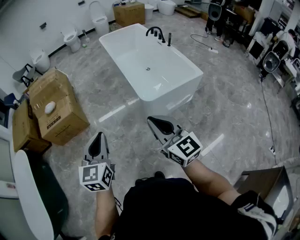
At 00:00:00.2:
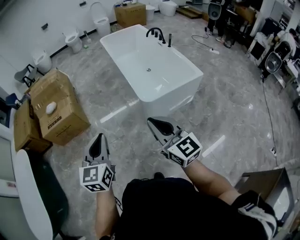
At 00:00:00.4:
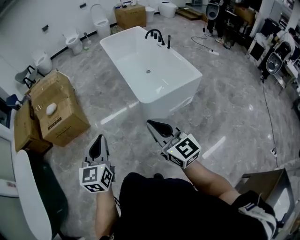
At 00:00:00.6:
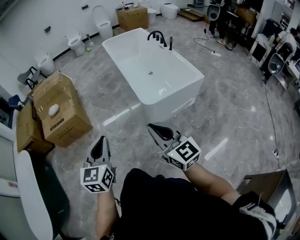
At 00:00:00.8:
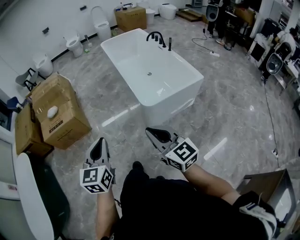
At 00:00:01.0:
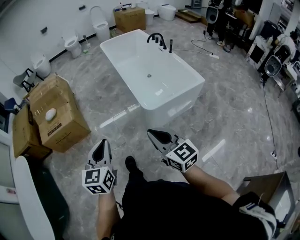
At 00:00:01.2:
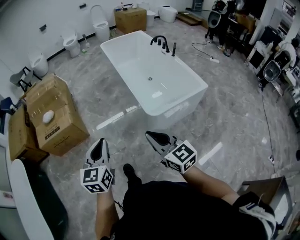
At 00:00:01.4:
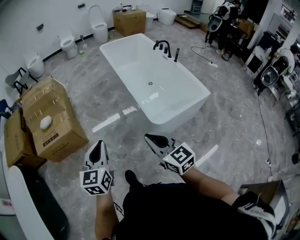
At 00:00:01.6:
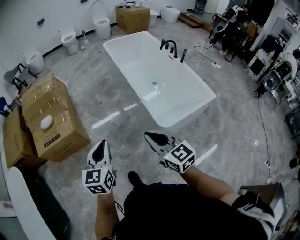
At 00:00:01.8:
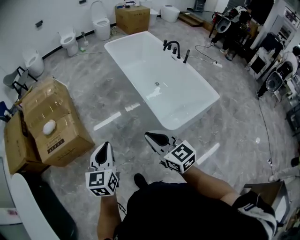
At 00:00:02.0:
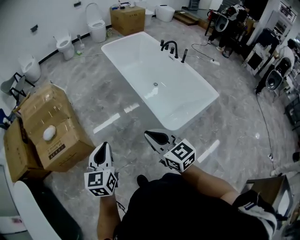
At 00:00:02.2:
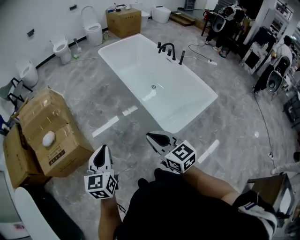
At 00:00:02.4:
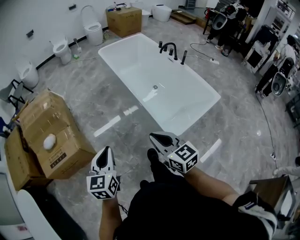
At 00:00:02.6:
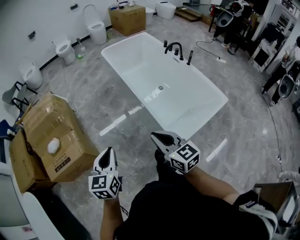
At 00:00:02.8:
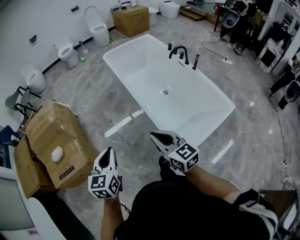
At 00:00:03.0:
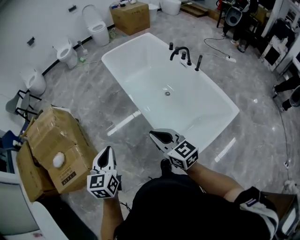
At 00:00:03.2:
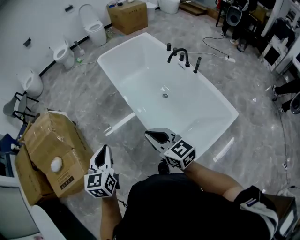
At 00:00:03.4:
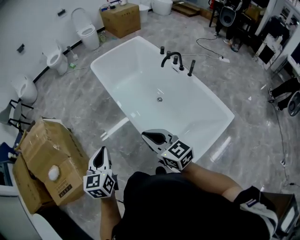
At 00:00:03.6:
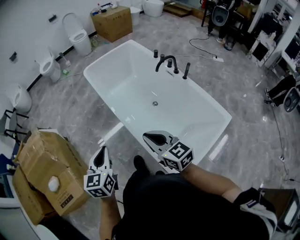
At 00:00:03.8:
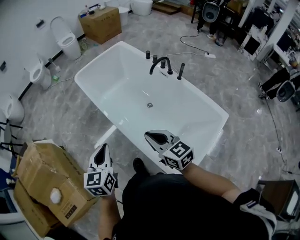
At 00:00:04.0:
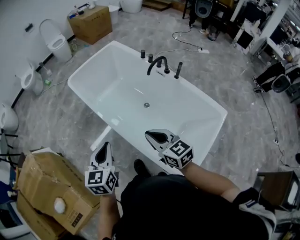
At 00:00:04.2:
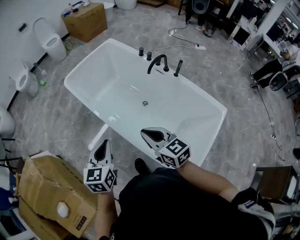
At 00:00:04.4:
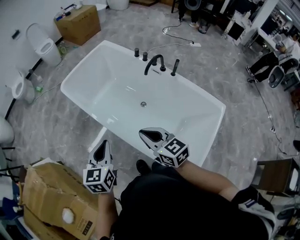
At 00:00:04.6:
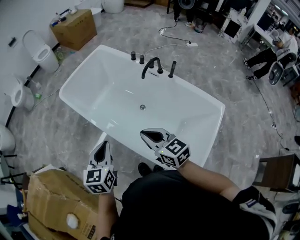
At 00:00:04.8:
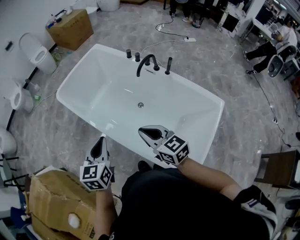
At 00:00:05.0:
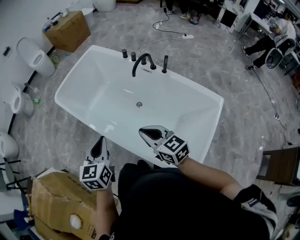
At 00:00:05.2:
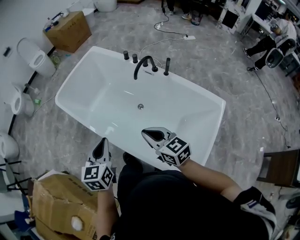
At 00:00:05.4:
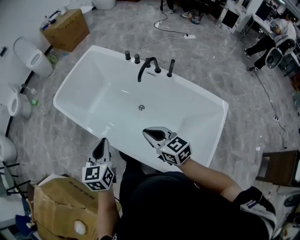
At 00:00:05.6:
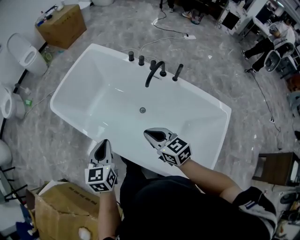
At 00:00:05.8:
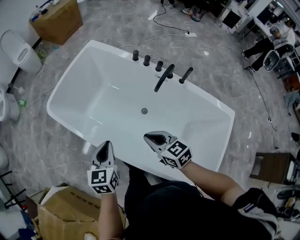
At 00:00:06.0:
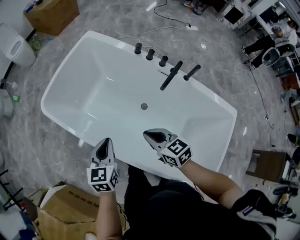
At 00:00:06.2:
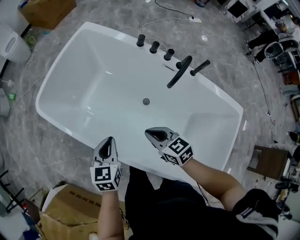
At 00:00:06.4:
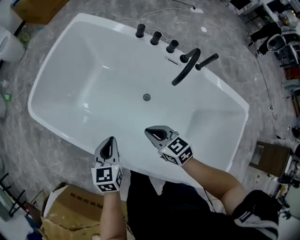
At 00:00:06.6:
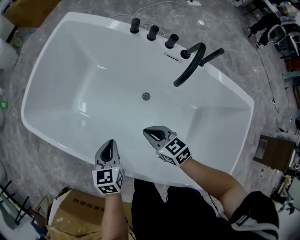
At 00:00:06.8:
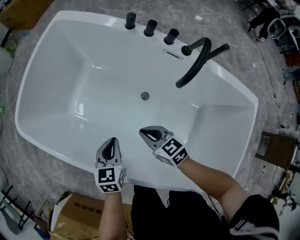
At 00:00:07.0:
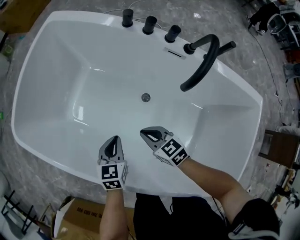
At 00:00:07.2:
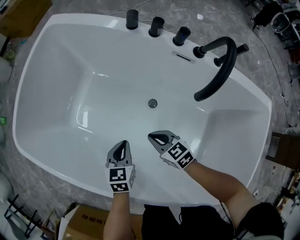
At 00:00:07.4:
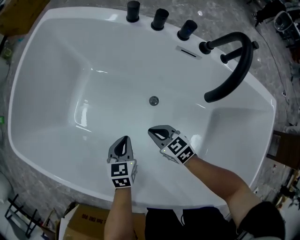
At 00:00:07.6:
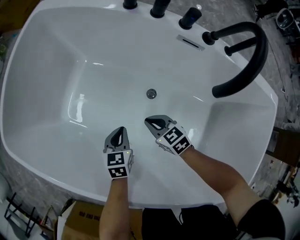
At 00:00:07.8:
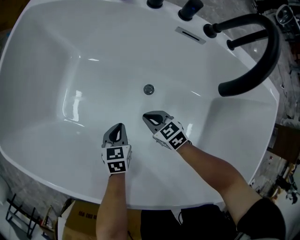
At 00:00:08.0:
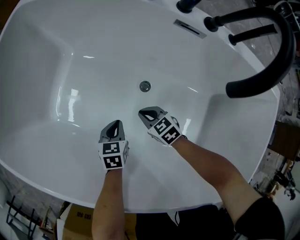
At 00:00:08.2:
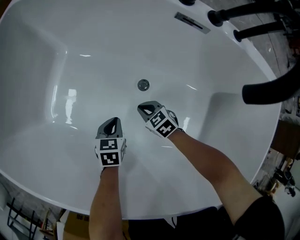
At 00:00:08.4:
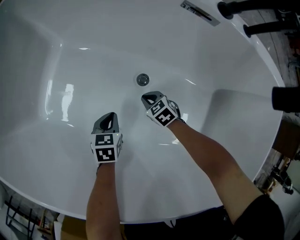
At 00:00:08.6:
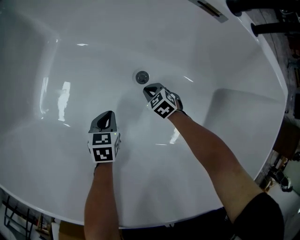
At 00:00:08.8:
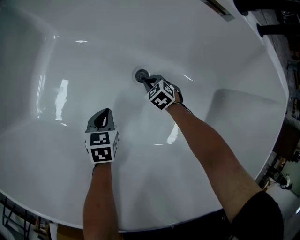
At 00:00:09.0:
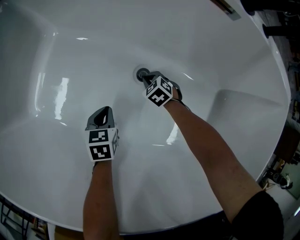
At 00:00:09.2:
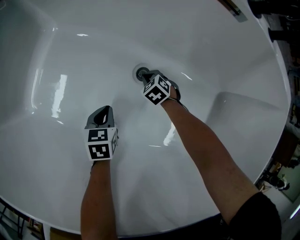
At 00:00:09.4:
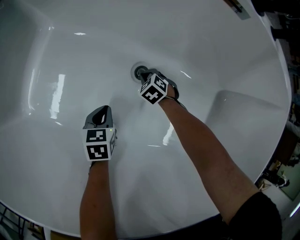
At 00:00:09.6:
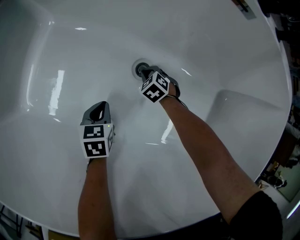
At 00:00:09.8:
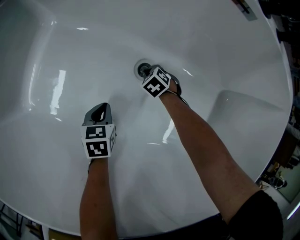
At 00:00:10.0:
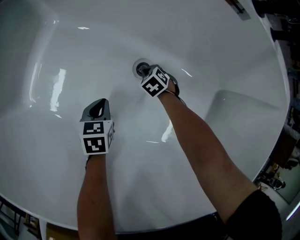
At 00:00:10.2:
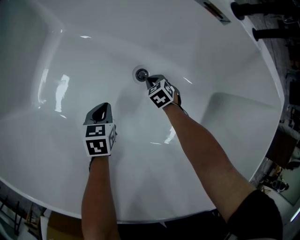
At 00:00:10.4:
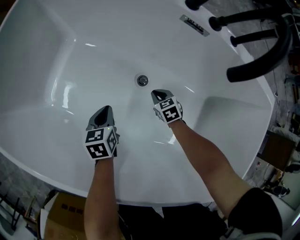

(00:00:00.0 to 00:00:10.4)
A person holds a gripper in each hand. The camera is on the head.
00:00:00.0 - 00:00:01.4: The left gripper travels forward by approximately 20 cm. The right gripper shifts roughly 20 cm forward and to the left.
00:00:01.4 - 00:00:03.0: The pair of grippers is taken forward, about 40 cm.
00:00:03.0 - 00:00:04.4: Both grippers travel together forward, some 35 cm. The left gripper changes its angle by about 20 degrees, while the right gripper turns by about 20 degrees.
00:00:04.4 - 00:00:06.0: The grippers both shift forward and downward by about 35 cm.
00:00:06.0 - 00:00:07.4: Both grippers move downward, some 35 cm.
00:00:07.4 - 00:00:09.0: The two grippers go some 30 cm downward. The right gripper rotates about 30 degrees.
00:00:09.0 - 00:00:10.4: Both grippers move upward, some 15 cm. The right gripper rotates some 20 degrees.

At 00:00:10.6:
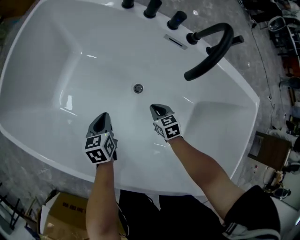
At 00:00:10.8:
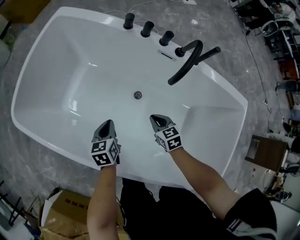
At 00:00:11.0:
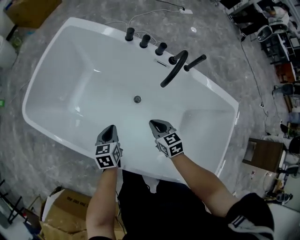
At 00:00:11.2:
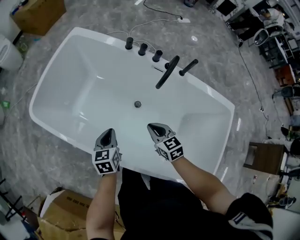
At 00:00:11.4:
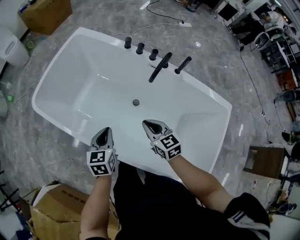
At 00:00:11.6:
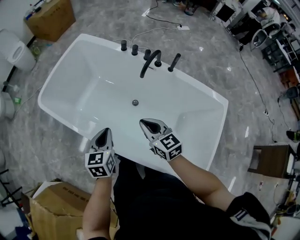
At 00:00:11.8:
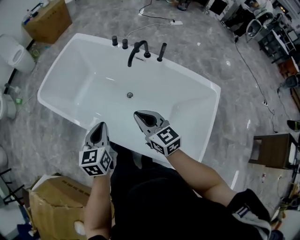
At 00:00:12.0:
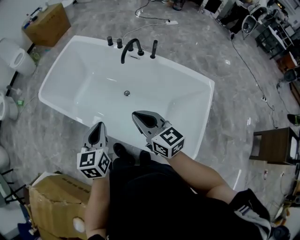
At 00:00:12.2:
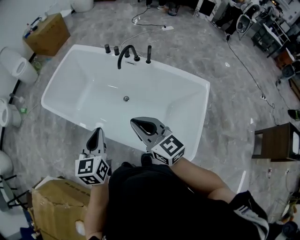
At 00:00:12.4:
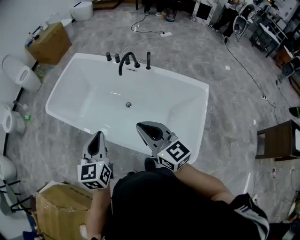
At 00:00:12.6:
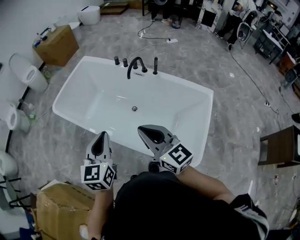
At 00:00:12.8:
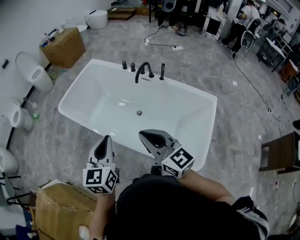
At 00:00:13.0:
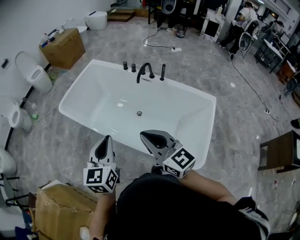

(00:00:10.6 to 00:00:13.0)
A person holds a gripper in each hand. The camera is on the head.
00:00:10.6 - 00:00:11.8: The two grippers go roughly 60 cm upward and backward. The right gripper points its fingers roughly 40 degrees further upward. The left gripper turns by roughly 20 degrees.
00:00:11.8 - 00:00:13.0: The right gripper goes about 30 cm backward, upward and to the left; the left gripper heads upward and backward, covering some 25 cm.

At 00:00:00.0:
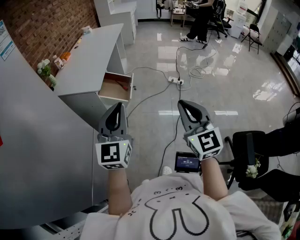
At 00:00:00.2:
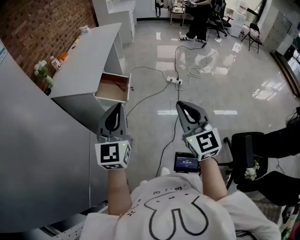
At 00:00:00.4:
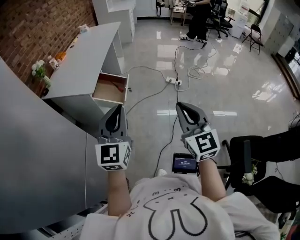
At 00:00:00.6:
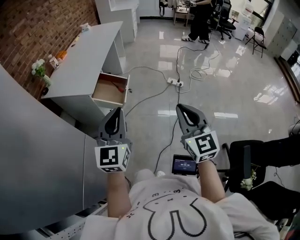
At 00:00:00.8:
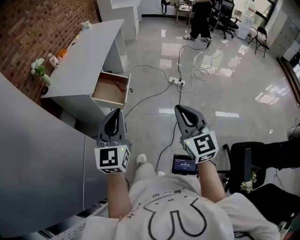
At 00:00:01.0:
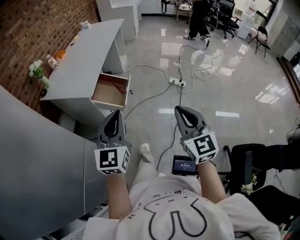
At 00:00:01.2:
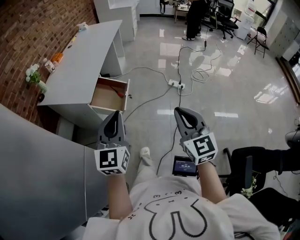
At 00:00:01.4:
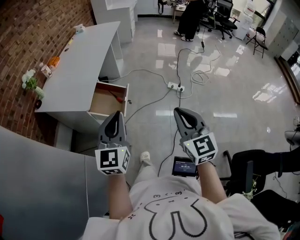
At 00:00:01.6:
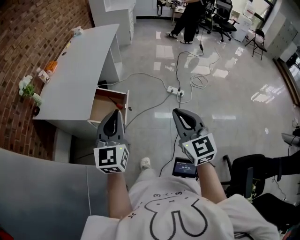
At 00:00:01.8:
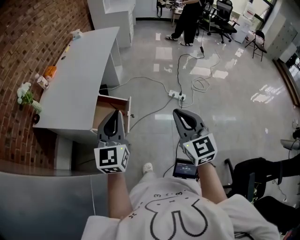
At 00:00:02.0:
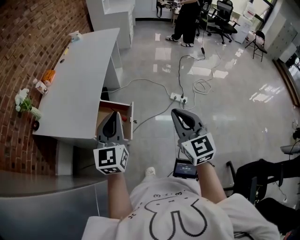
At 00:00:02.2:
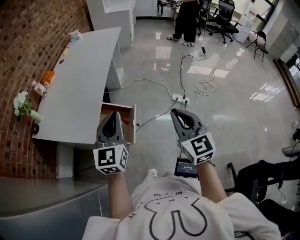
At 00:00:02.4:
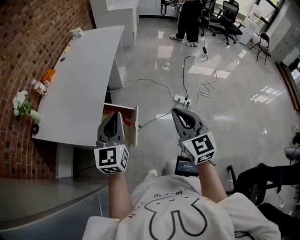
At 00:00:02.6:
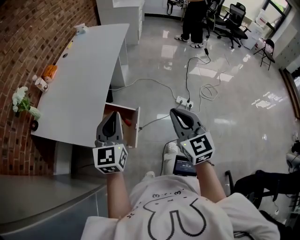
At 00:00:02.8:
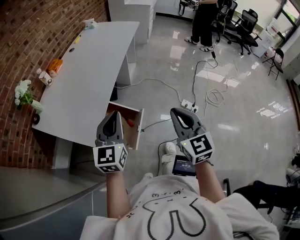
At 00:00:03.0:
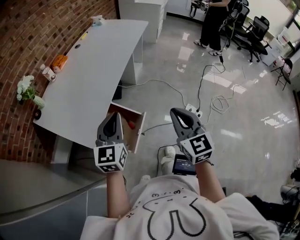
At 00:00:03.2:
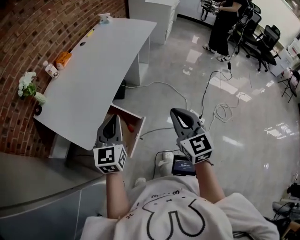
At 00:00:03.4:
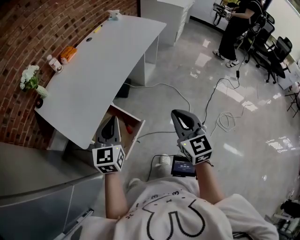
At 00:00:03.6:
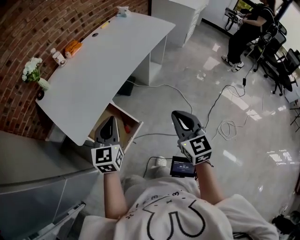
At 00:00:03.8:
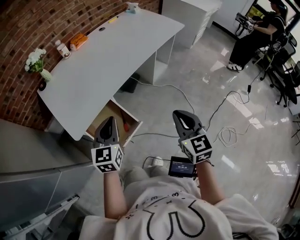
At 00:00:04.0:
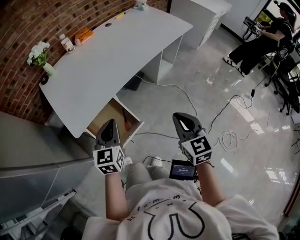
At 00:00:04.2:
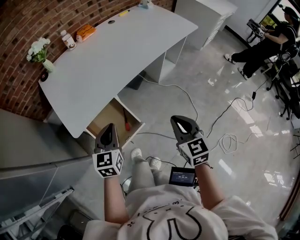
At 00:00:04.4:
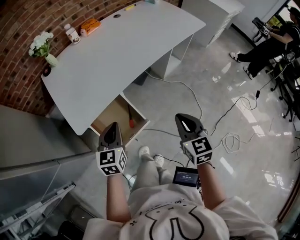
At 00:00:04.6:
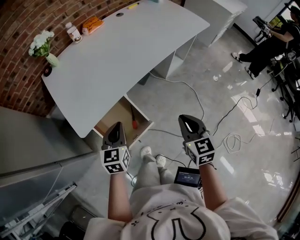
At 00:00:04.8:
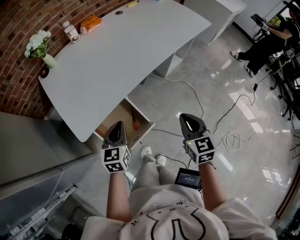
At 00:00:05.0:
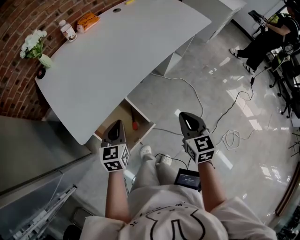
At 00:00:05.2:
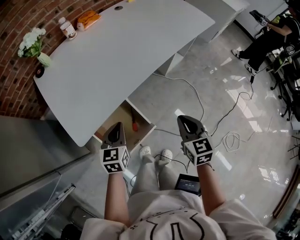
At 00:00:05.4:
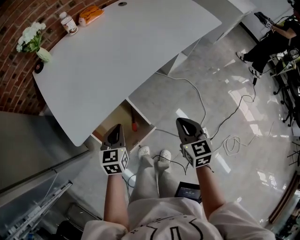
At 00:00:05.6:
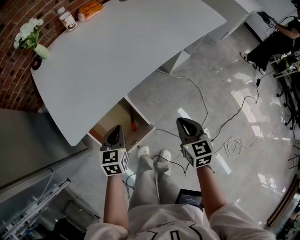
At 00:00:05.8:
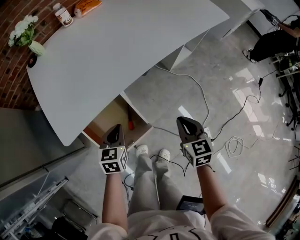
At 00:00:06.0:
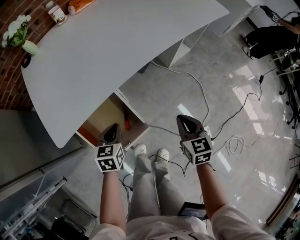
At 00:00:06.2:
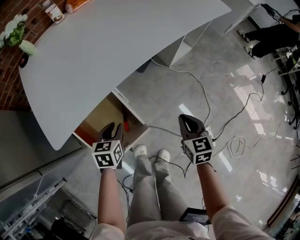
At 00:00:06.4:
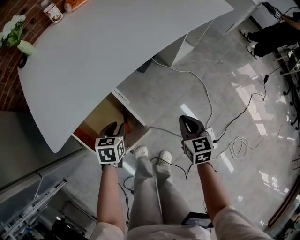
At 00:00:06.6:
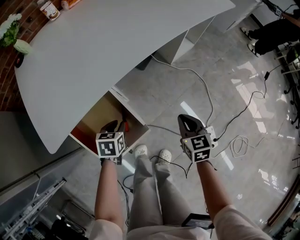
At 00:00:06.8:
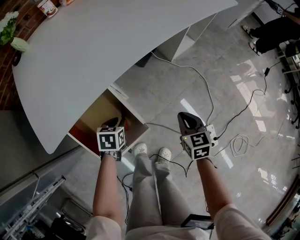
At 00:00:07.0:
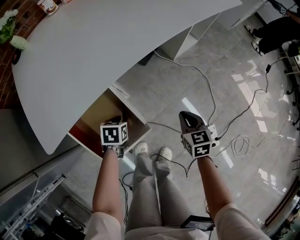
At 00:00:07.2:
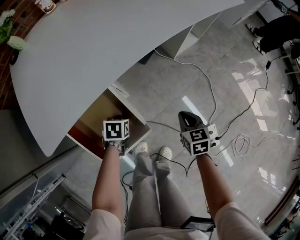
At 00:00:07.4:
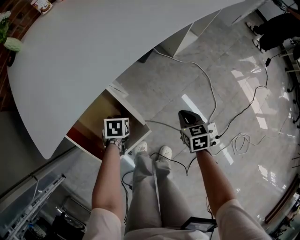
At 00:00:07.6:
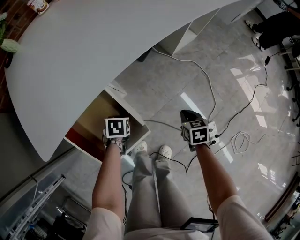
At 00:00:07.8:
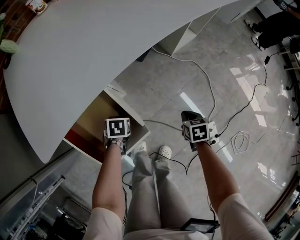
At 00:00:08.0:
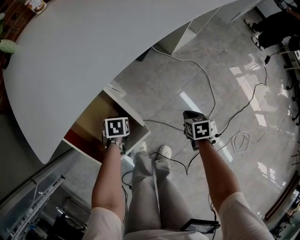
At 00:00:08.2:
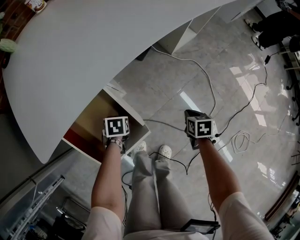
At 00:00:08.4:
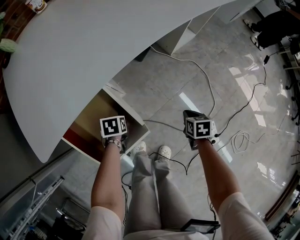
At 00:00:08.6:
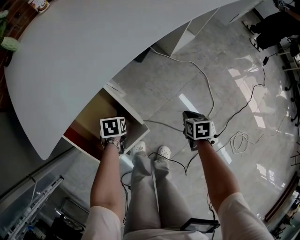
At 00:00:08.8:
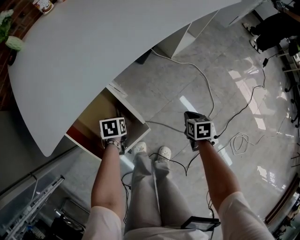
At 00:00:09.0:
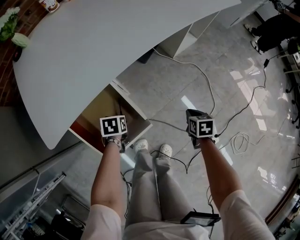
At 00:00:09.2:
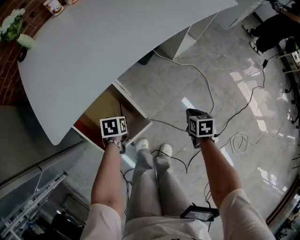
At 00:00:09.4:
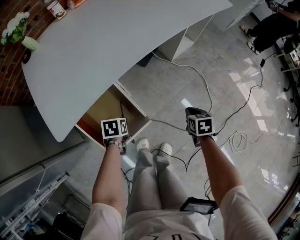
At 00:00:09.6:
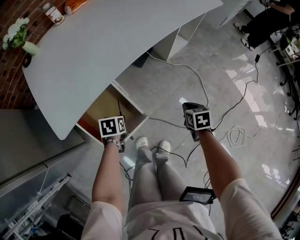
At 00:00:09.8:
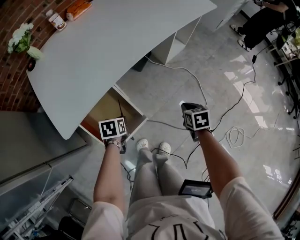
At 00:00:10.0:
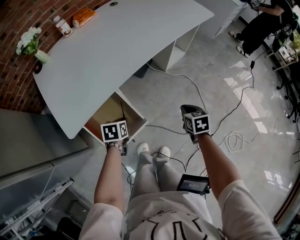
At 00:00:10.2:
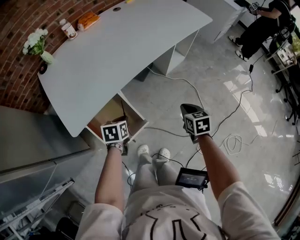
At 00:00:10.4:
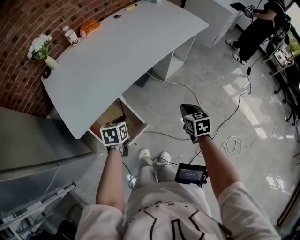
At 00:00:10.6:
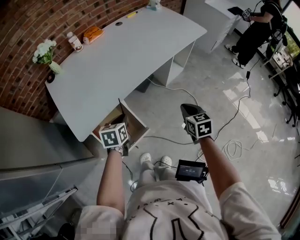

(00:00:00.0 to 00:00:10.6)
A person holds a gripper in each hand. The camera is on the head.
00:00:00.0 - 00:00:01.6: The two grippers go roughly 30 cm forward.
00:00:01.6 - 00:00:03.0: The grippers both shift forward by roughly 30 cm.
00:00:03.0 - 00:00:04.6: The left gripper shifts roughly 15 cm downward, and changes its angle by about 40 degrees, while the right gripper ends up approximately 25 cm from where it was, and turns by about 30 degrees.
00:00:04.6 - 00:00:06.0: The left gripper heads downward, covering approximately 20 cm. The right gripper shifts approximately 20 cm downward and forward.
00:00:06.0 - 00:00:07.6: The two grippers go some 20 cm downward. The left gripper tilts its fingers some 30 degrees downward, and opens. Meanwhile the right gripper turns by about 20 degrees.
00:00:07.6 - 00:00:09.0: The grippers stay close to where they were, moving slightly.
00:00:09.0 - 00:00:10.6: The grippers both shift upward by some 30 cm. The left gripper rotates about 30 degrees, while the right gripper turns by some 30 degrees.
